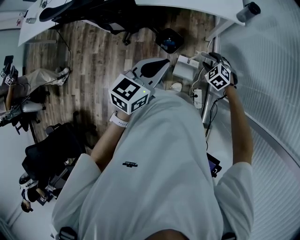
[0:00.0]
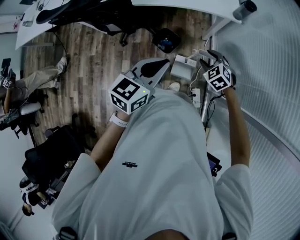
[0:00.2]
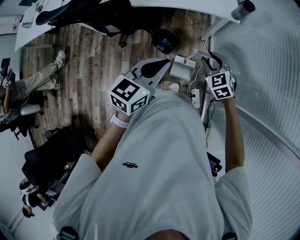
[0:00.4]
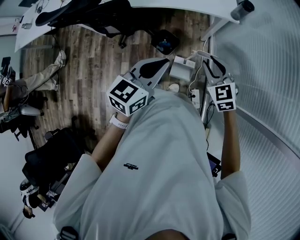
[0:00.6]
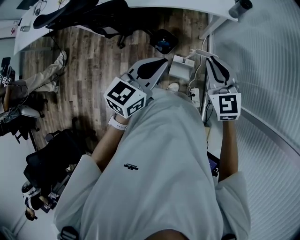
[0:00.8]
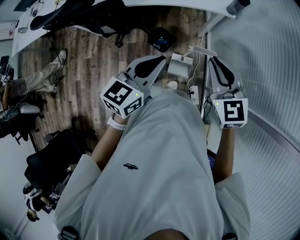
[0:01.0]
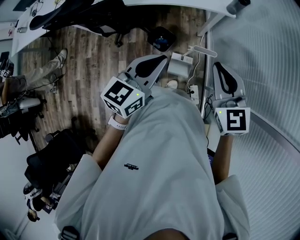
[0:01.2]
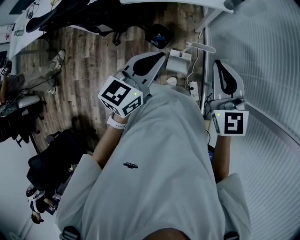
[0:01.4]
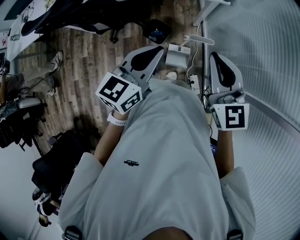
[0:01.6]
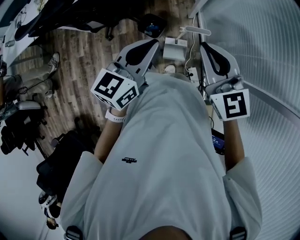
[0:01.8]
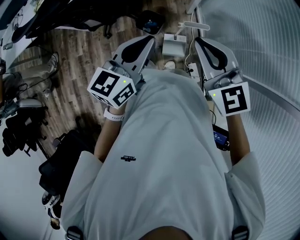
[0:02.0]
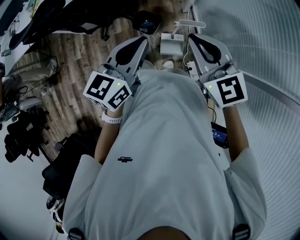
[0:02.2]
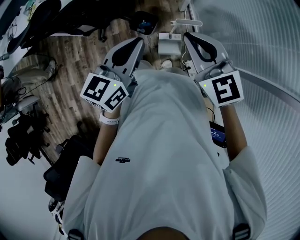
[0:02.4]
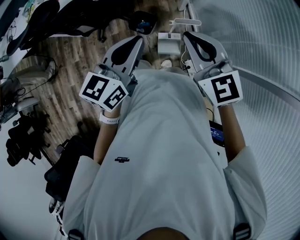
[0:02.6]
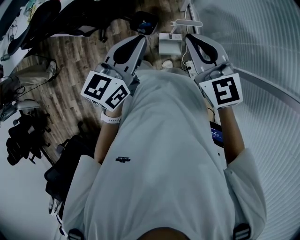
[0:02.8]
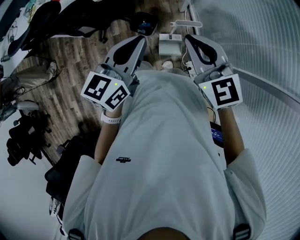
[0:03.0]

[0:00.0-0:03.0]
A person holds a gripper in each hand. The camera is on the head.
0:00.0 to 0:01.6: The right gripper moves upward, roughly 30 cm, tips its fingers upward by approximately 50 degrees, and closes its fingers.
0:01.6 to 0:03.0: The grippers stay close to where they were, moving slightly.

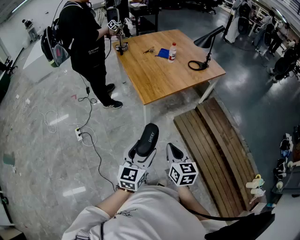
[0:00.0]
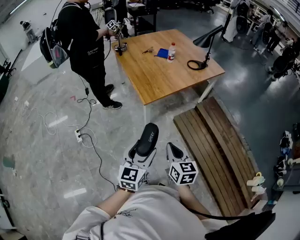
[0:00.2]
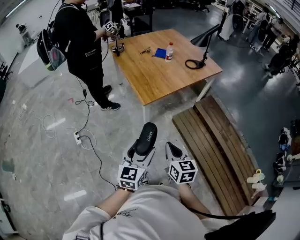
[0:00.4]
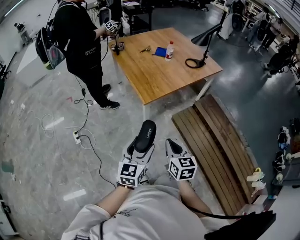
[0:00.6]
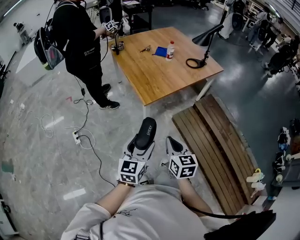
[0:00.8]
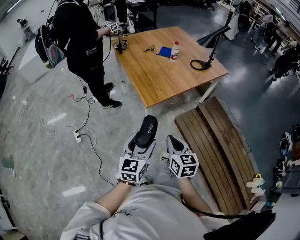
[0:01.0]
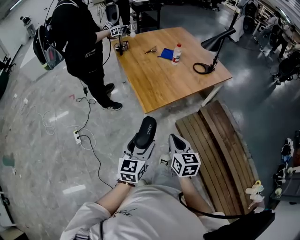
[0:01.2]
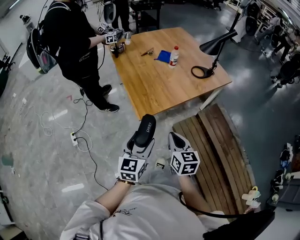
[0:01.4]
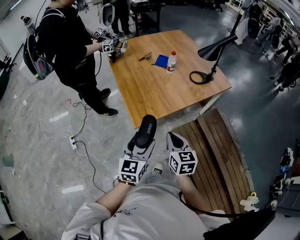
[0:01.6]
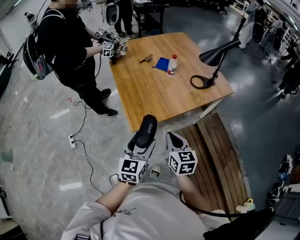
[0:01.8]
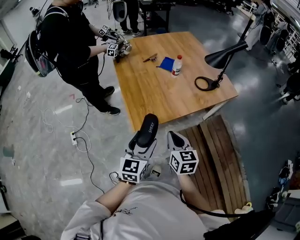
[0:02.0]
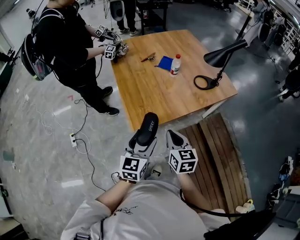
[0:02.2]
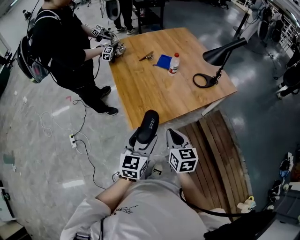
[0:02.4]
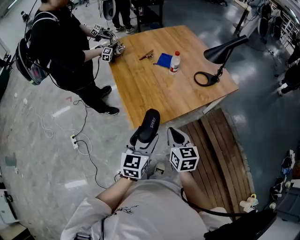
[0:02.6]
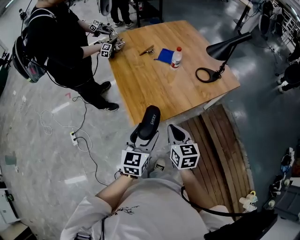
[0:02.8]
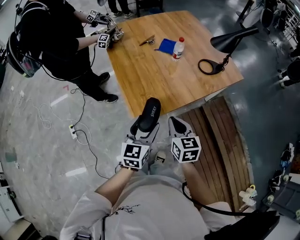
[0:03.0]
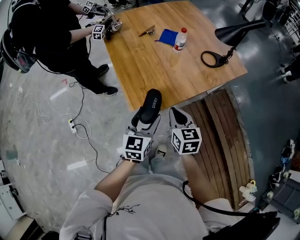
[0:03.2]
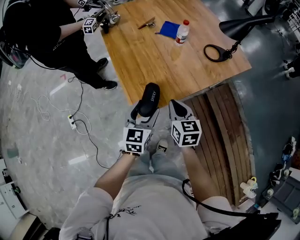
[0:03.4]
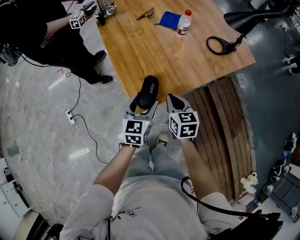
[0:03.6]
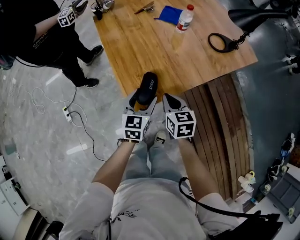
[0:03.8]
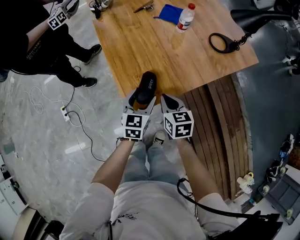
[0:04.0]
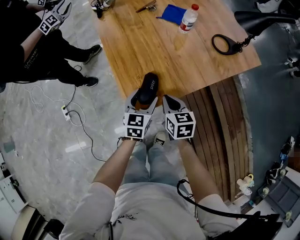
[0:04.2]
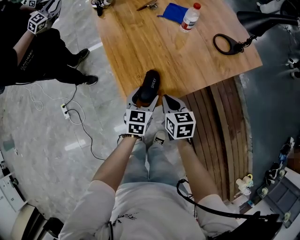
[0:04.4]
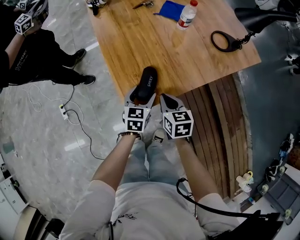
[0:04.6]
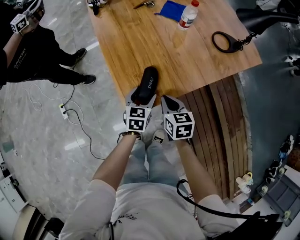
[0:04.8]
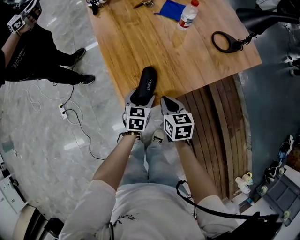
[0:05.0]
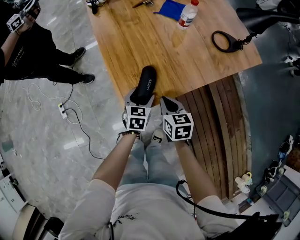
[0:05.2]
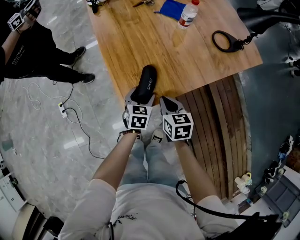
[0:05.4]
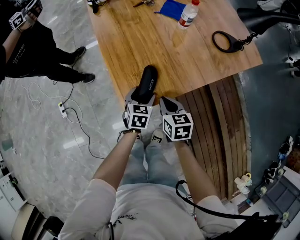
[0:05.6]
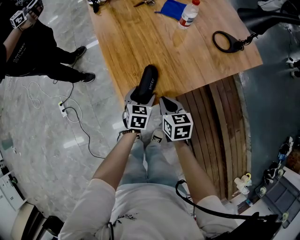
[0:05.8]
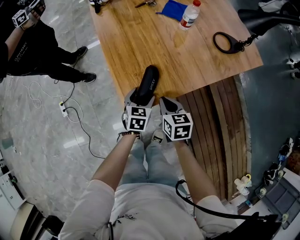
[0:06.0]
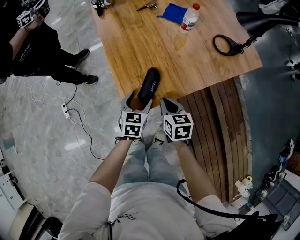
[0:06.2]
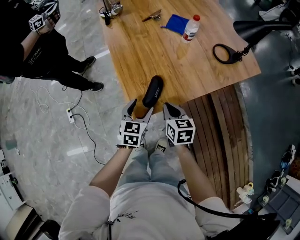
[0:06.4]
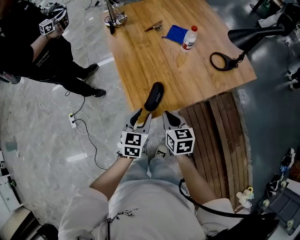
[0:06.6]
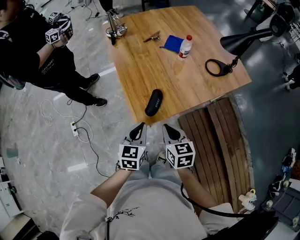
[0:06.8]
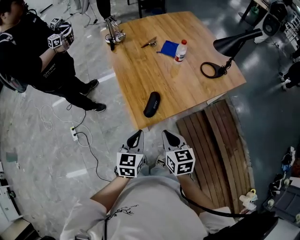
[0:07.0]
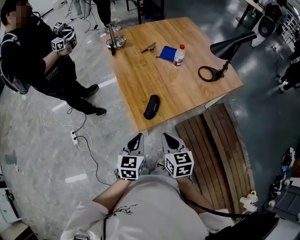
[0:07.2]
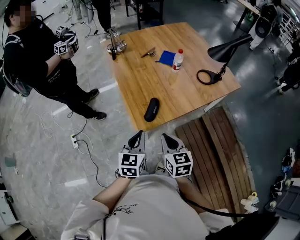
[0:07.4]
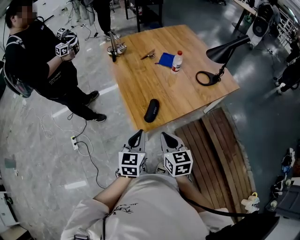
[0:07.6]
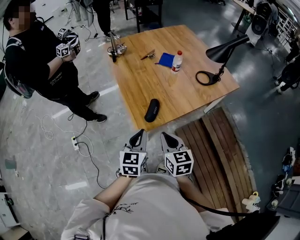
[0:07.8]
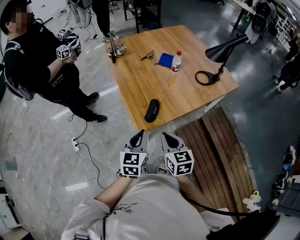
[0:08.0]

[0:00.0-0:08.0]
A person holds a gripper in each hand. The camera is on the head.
0:00.0 to 0:01.6: The grippers both shift forward by roughly 25 cm.
0:01.6 to 0:03.2: The left gripper is displaced forward and downward by approximately 15 cm, while the right gripper travels forward by some 15 cm.
0:03.2 to 0:04.8: Both grippers move downward and forward, roughly 20 cm.
0:04.8 to 0:06.4: The left gripper travels upward by roughly 5 cm.
0:06.4 to 0:08.0: Both grippers travel together upward and backward, approximately 20 cm. The left gripper closes its fingers.

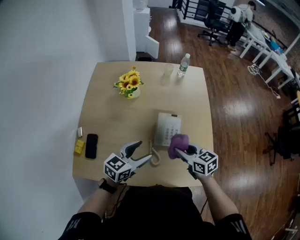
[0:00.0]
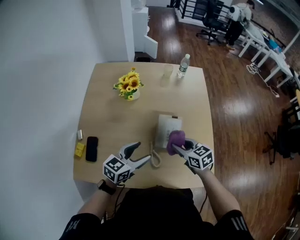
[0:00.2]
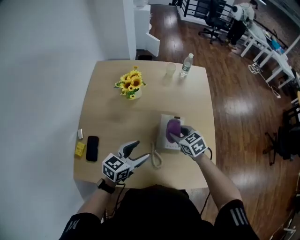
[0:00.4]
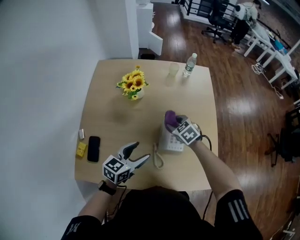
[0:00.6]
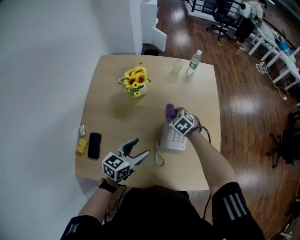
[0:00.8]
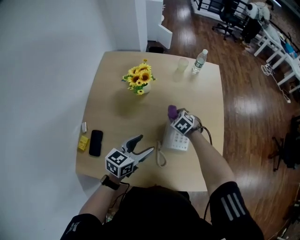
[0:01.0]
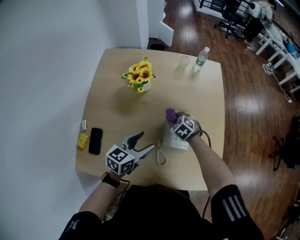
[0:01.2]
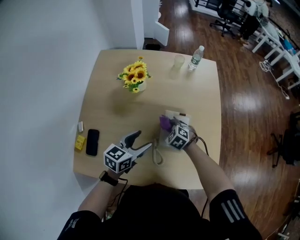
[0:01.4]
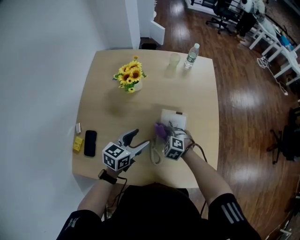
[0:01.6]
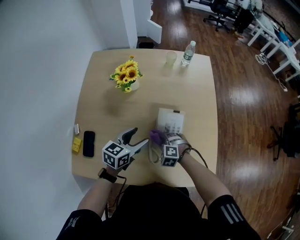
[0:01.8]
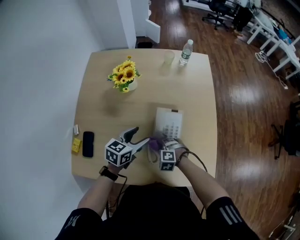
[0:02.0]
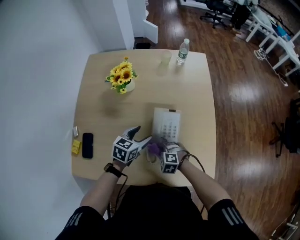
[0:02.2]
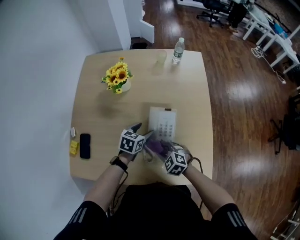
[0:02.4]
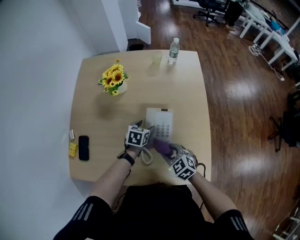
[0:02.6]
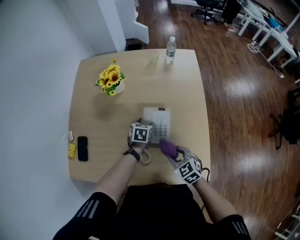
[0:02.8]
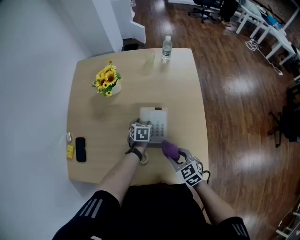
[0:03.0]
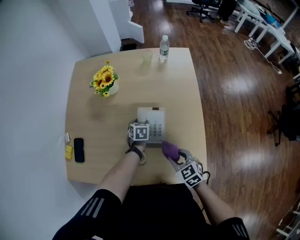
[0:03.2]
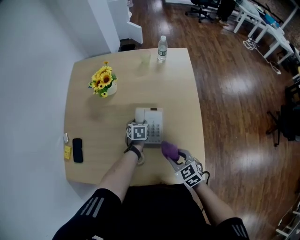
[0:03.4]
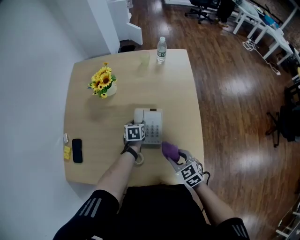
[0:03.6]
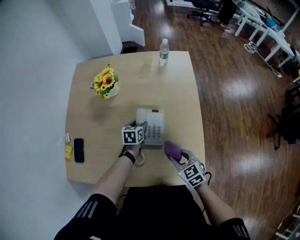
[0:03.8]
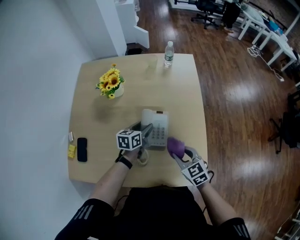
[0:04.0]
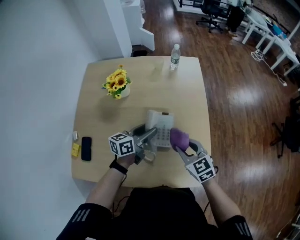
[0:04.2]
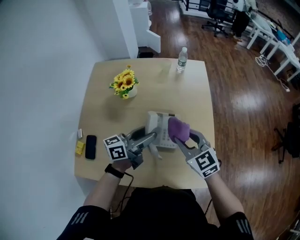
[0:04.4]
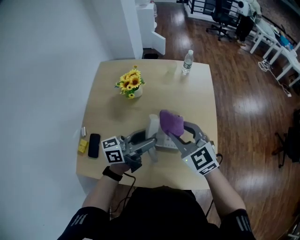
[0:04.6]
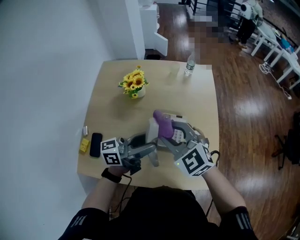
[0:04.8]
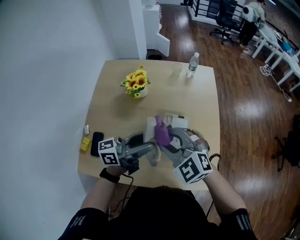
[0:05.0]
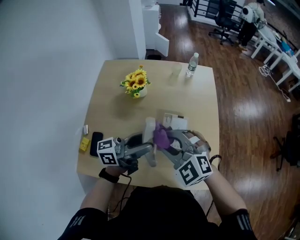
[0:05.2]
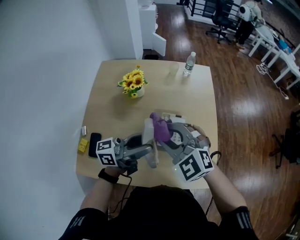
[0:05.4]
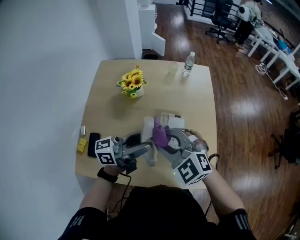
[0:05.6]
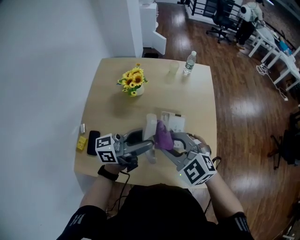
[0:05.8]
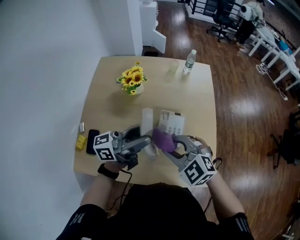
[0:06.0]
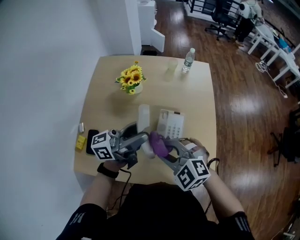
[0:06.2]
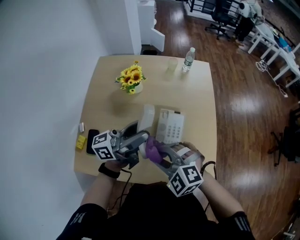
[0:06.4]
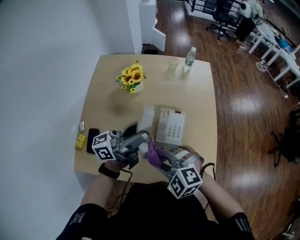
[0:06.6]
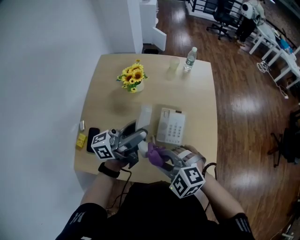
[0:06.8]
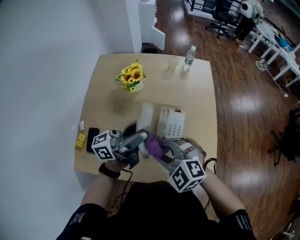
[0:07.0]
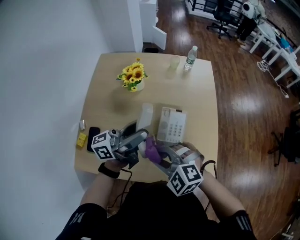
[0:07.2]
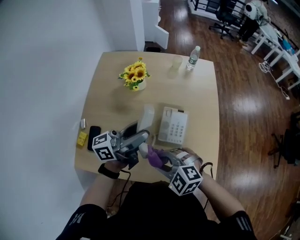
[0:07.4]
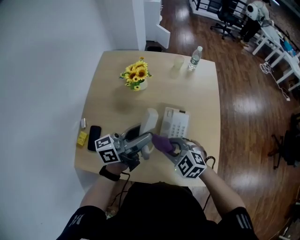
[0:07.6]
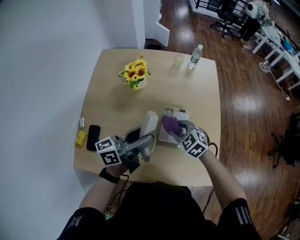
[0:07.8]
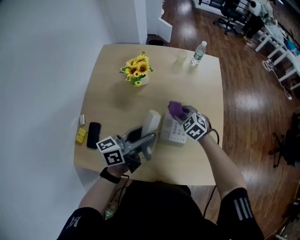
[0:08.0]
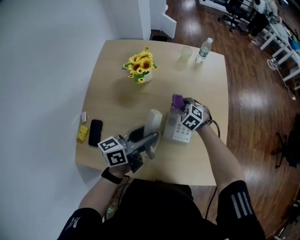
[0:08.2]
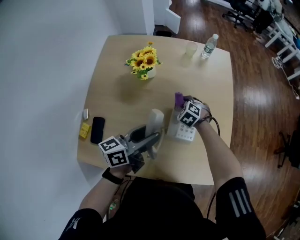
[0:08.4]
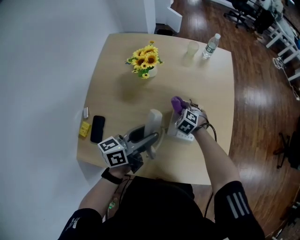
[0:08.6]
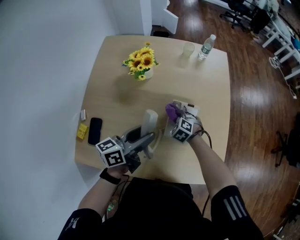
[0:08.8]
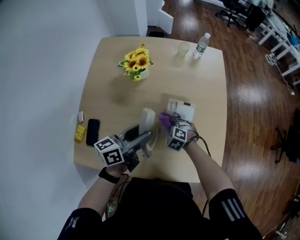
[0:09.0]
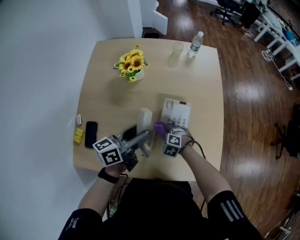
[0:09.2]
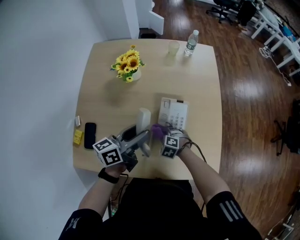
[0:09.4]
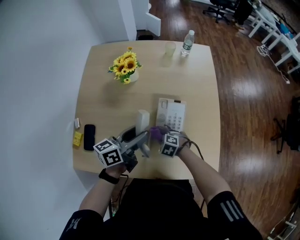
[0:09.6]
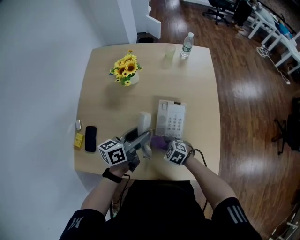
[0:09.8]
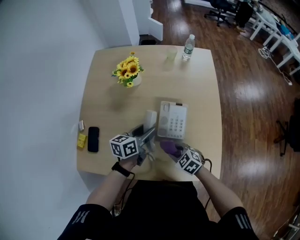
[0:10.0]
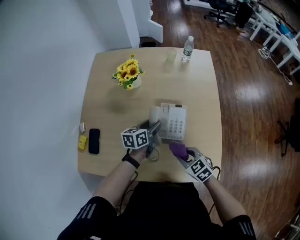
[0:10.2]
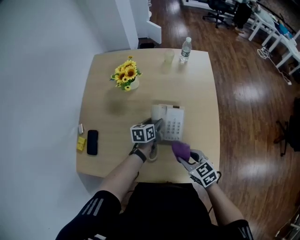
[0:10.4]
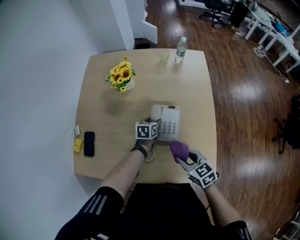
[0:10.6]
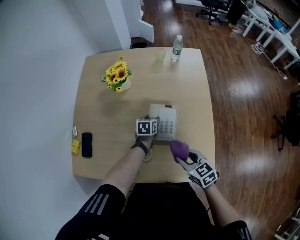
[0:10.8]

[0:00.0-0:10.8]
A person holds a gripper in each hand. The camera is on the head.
0:00.0 to 0:01.6: The right gripper heads downward, to the left and forward, covering some 20 cm, and rolls counterclockwise, seen from behind, by about 50 degrees, while the left gripper moves forward, some 10 cm.
0:01.6 to 0:03.0: The right gripper heads to the right, backward and upward, covering about 20 cm, and swivels about 40 degrees. The left gripper travels downward, to the right and forward by roughly 20 cm, and rotates some 40 degrees.
0:03.0 to 0:04.6: The right gripper moves upward and forward, some 25 cm, and turns by approximately 30 degrees. Meanwhile the left gripper goes some 30 cm upward, and angles its fingers upward, by some 60 degrees.
0:04.6 to 0:06.2: The right gripper shifts about 10 cm backward and to the left, and turns by approximately 30 degrees. The left gripper moves upward, about 5 cm.
0:06.2 to 0:07.8: The left gripper heads downward, covering roughly 10 cm, while the right gripper goes forward and backward, roughly 15 cm each way, reversing 3 times, and turns by approximately 20 degrees.
0:07.8 to 0:09.2: The right gripper travels downward by some 20 cm, and swivels roughly 20 degrees. The left gripper travels downward by about 5 cm.
0:09.2 to 0:10.8: The right gripper moves upward, to the right and backward, roughly 25 cm, and rotates around the line of its fingers by some 50 degrees, clockwise from behind, while the left gripper shifts approximately 25 cm downward, to the right and forward, and points its fingers approximately 40 degrees further downward.

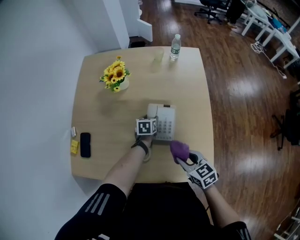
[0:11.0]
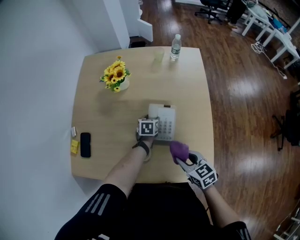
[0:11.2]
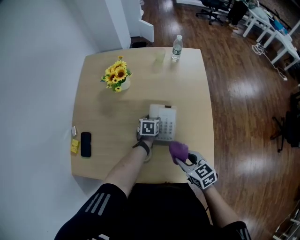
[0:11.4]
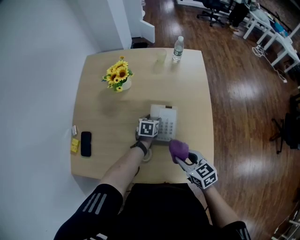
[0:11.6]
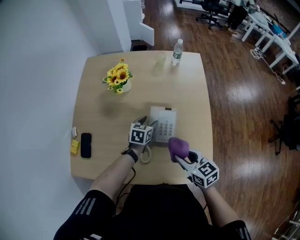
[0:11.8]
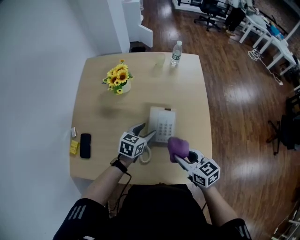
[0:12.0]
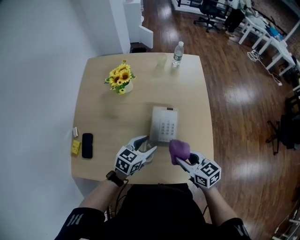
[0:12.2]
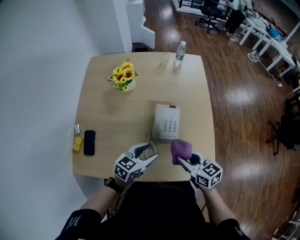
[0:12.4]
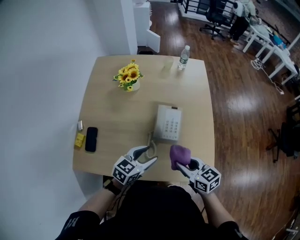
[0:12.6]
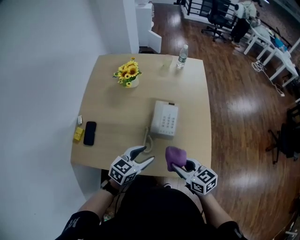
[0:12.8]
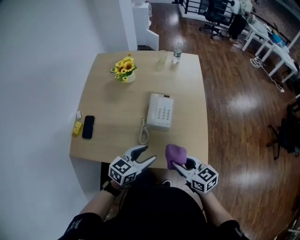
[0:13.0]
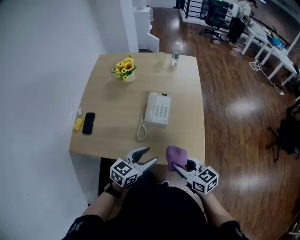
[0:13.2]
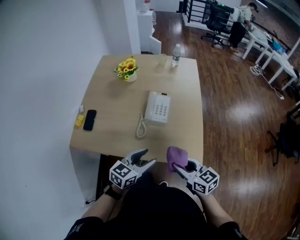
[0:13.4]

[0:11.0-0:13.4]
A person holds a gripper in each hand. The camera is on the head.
0:11.0 to 0:12.2: The right gripper moves roughly 5 cm. The left gripper shifts some 20 cm upward and backward, and rotates about 40 degrees.
0:12.2 to 0:13.4: The two grippers go about 20 cm backward.
